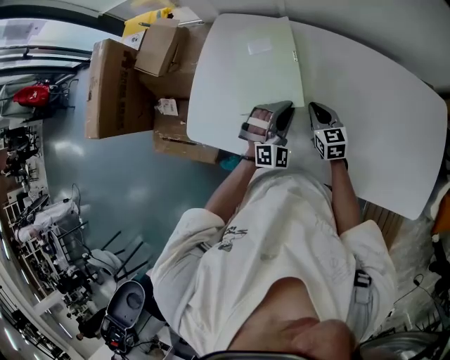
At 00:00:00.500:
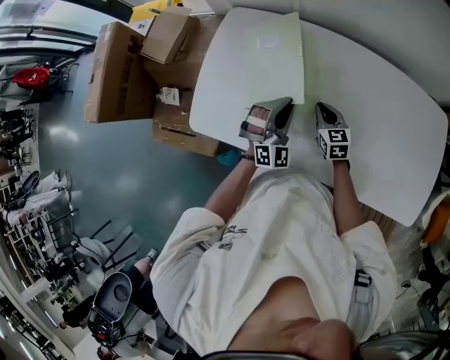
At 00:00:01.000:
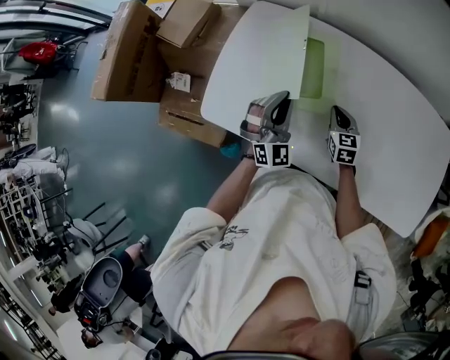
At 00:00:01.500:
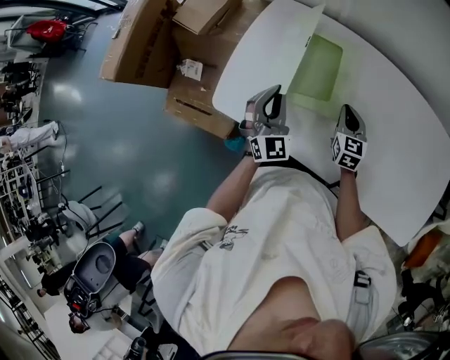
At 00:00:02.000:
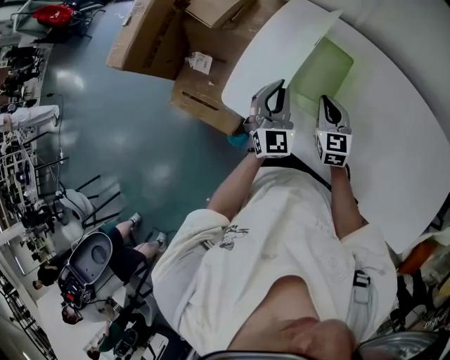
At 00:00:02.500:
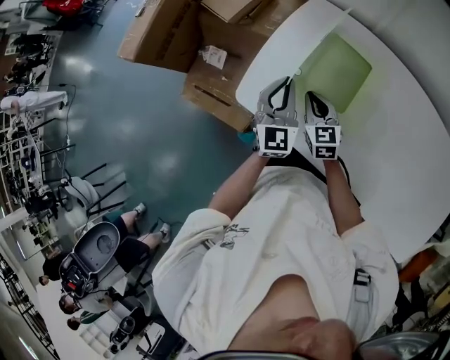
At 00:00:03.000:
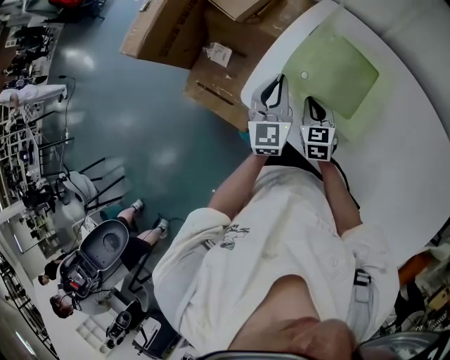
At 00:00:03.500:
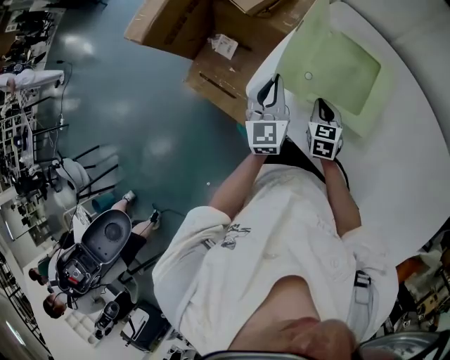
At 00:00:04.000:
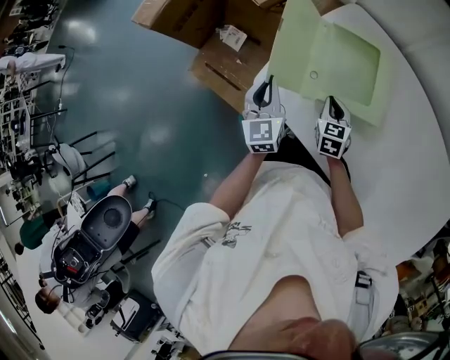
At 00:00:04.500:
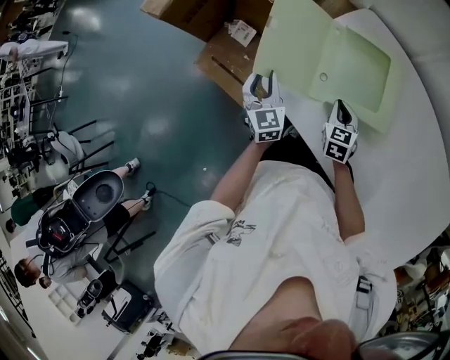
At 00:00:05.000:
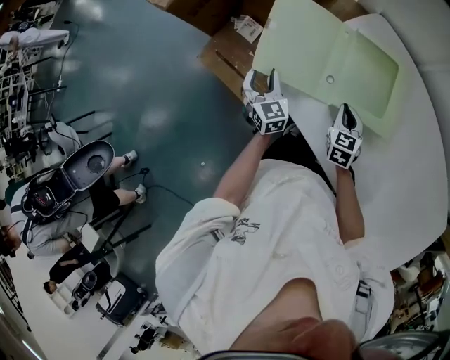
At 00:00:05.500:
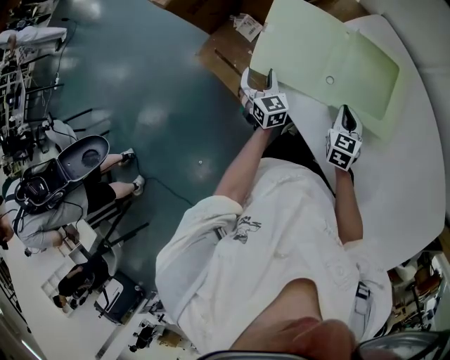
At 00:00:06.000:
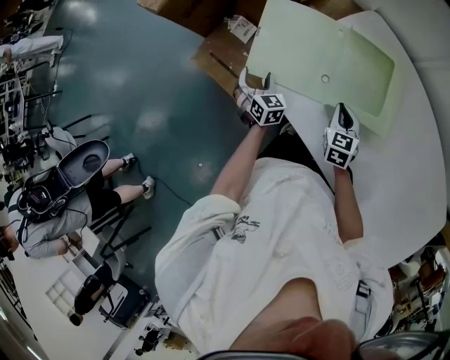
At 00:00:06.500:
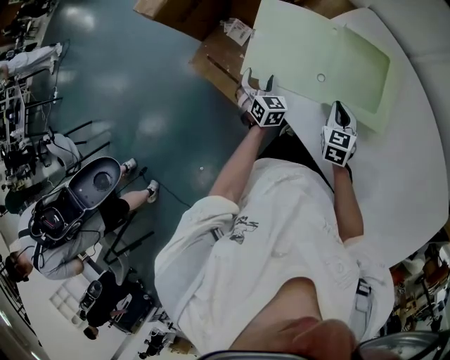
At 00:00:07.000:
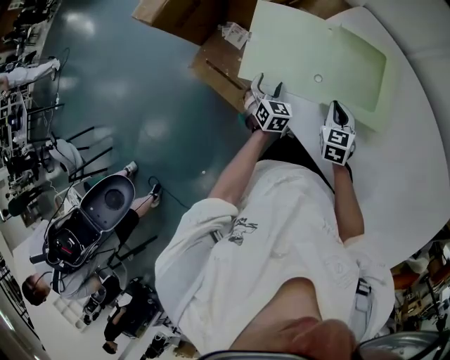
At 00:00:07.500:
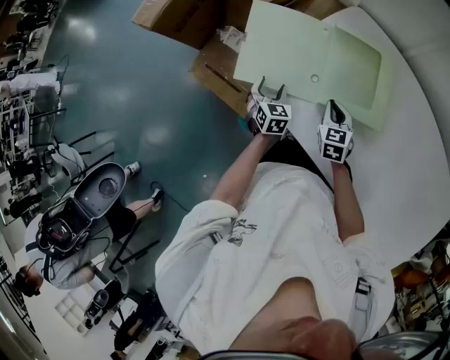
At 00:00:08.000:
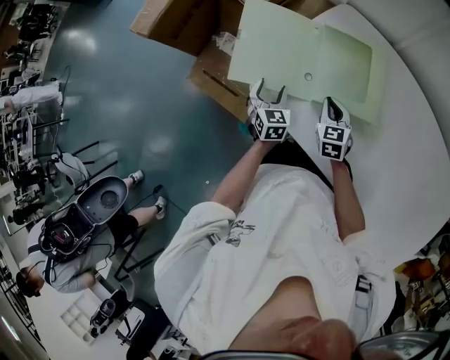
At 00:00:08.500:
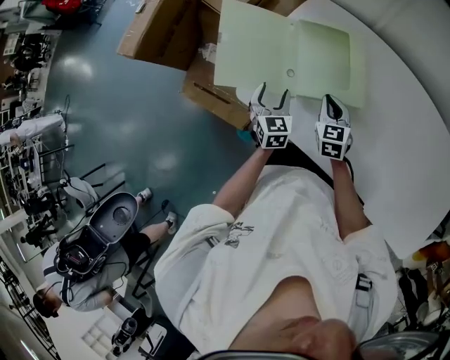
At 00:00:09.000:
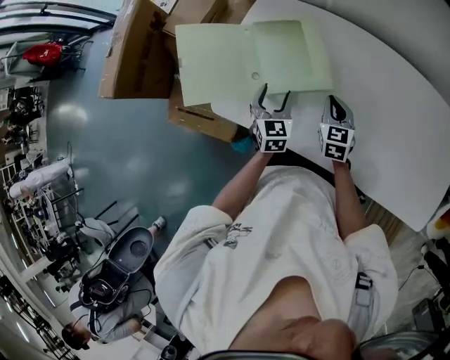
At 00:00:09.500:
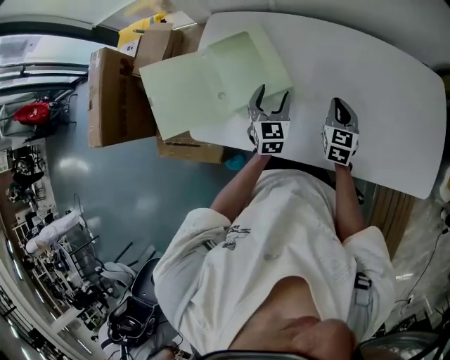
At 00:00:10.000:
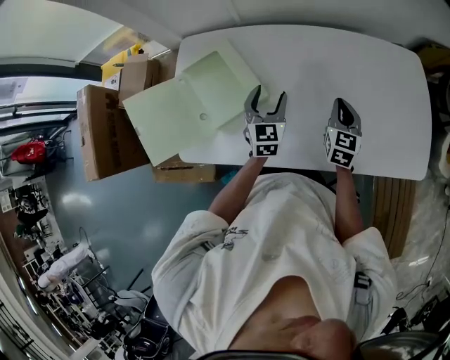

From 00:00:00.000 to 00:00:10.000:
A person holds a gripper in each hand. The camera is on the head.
From 00:00:00.000 to 00:00:02.000: Both grippers move to the left and upward, some 20 cm. The left gripper swivels approximately 50 degrees.
From 00:00:02.000 to 00:00:04.000: The right gripper heads to the left and downward, covering about 15 cm. The left gripper moves to the left, some 20 cm, and swivels about 30 degrees.
From 00:00:04.000 to 00:00:06.000: The left gripper moves downward and to the left, some 20 cm, changes its angle by some 40 degrees, and opens up.
From 00:00:06.000 to 00:00:08.000: The left gripper travels to the right by about 10 cm.
From 00:00:08.000 to 00:00:10.000: The pair of grippers is taken about 40 cm. The right gripper turns by some 50 degrees; the left gripper swivels some 50 degrees.

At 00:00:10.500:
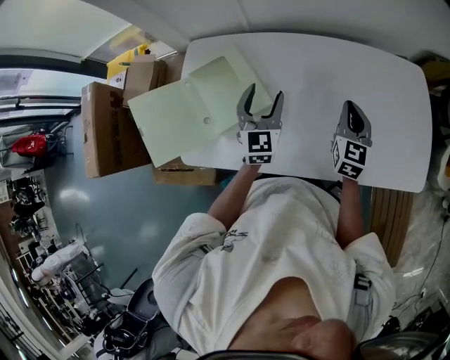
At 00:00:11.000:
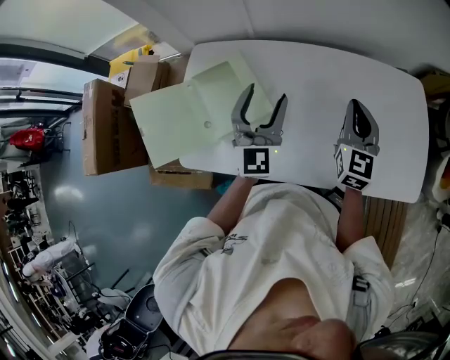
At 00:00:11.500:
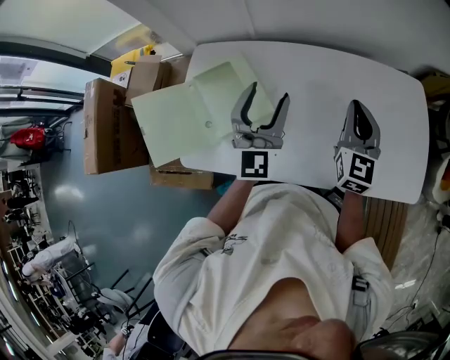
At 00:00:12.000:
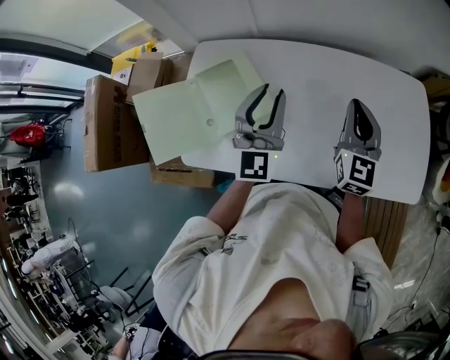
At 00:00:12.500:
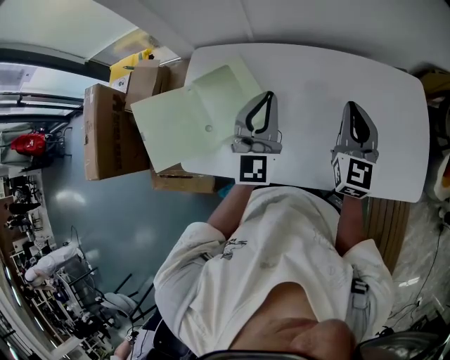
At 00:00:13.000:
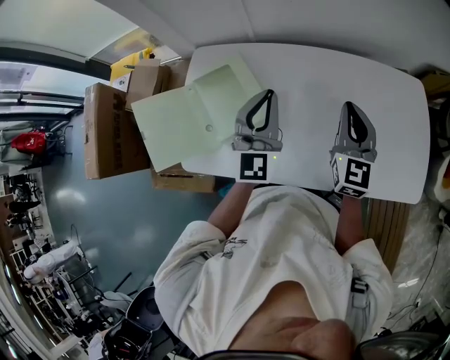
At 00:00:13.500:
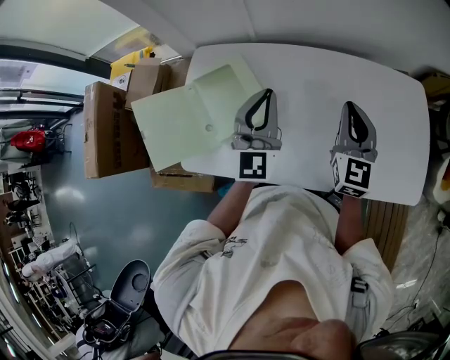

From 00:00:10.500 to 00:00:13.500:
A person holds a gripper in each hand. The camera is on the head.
From 00:00:10.500 to 00:00:12.000: The two grippers go roughly 10 cm upward. The left gripper closes up.
From 00:00:12.000 to 00:00:13.500: The left gripper closes its fingers.

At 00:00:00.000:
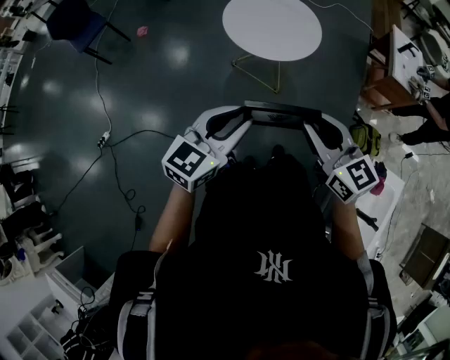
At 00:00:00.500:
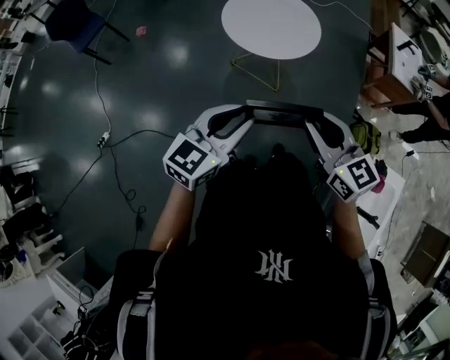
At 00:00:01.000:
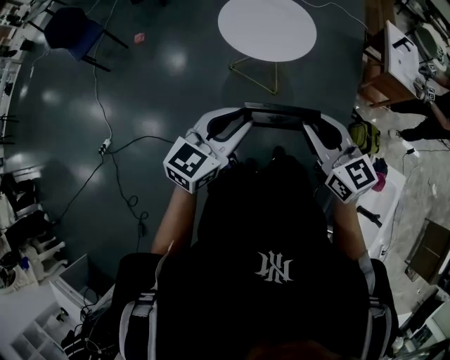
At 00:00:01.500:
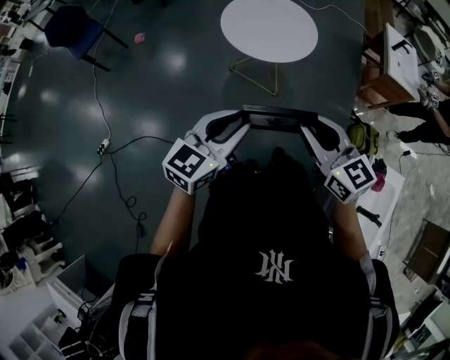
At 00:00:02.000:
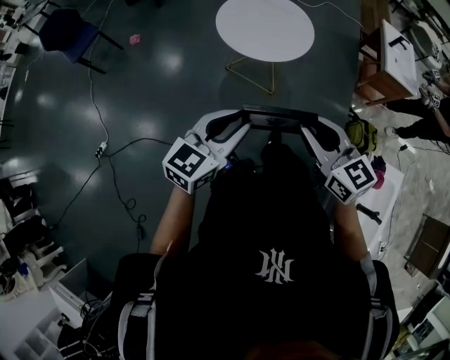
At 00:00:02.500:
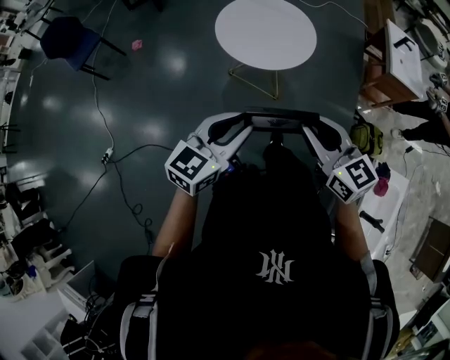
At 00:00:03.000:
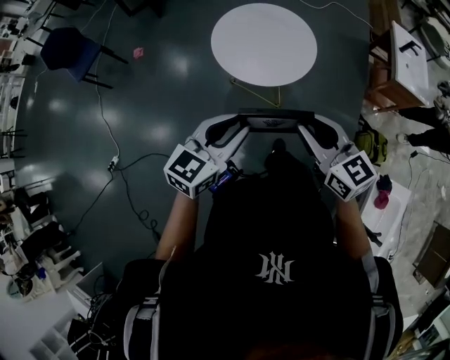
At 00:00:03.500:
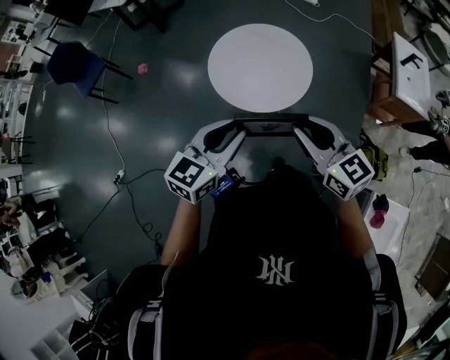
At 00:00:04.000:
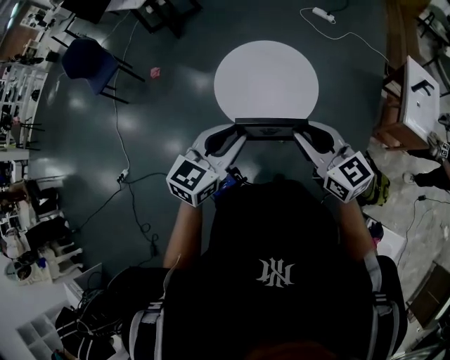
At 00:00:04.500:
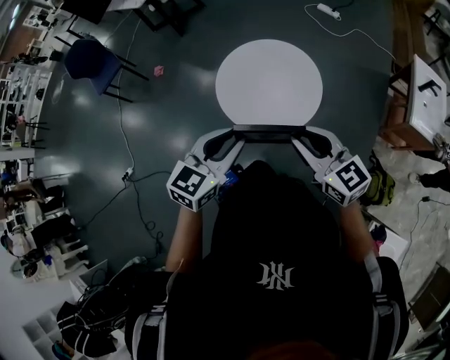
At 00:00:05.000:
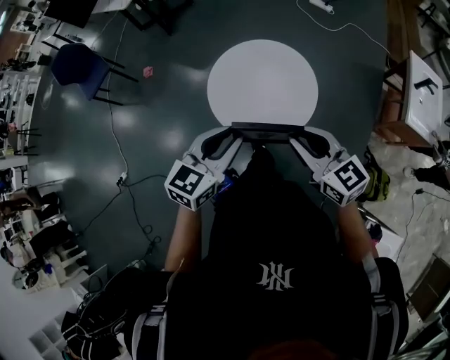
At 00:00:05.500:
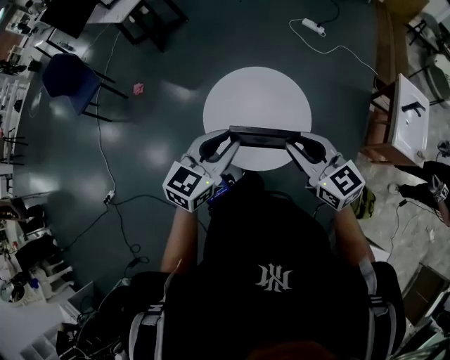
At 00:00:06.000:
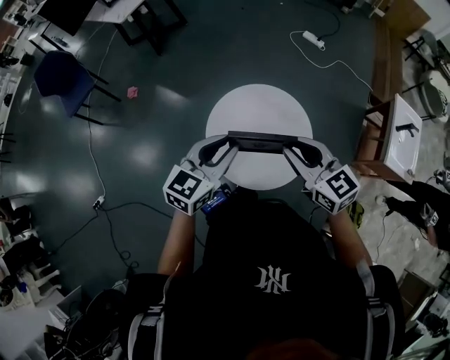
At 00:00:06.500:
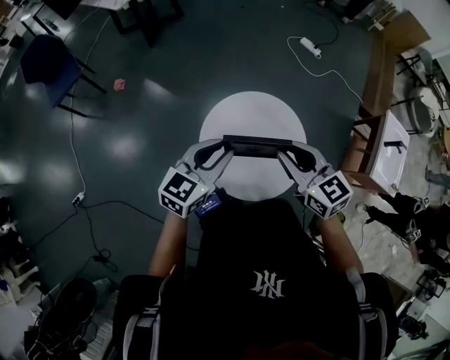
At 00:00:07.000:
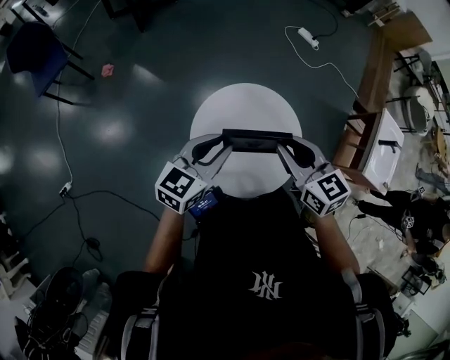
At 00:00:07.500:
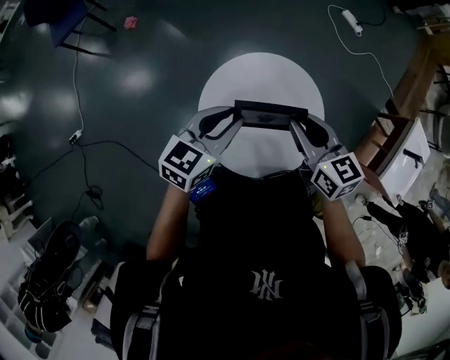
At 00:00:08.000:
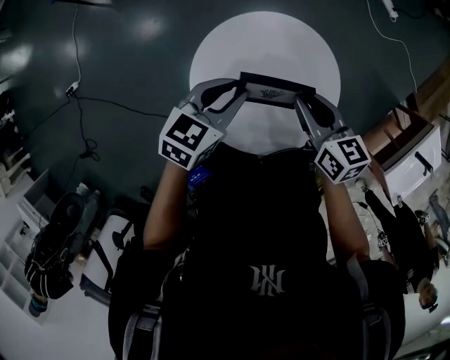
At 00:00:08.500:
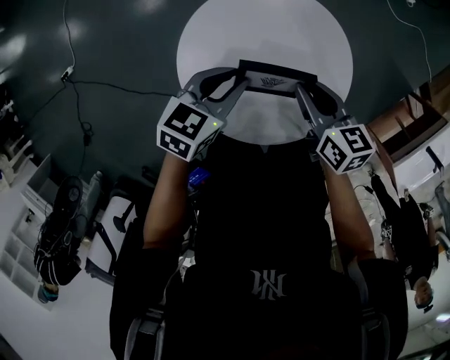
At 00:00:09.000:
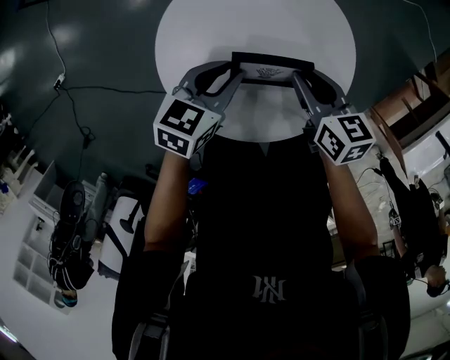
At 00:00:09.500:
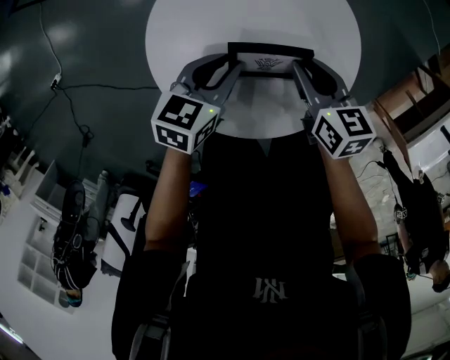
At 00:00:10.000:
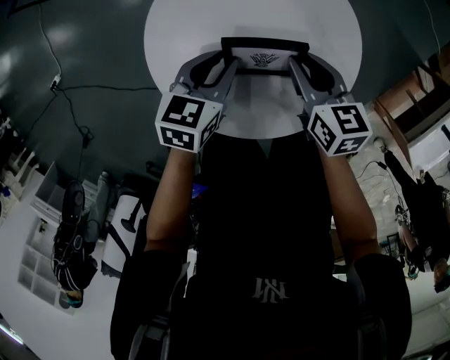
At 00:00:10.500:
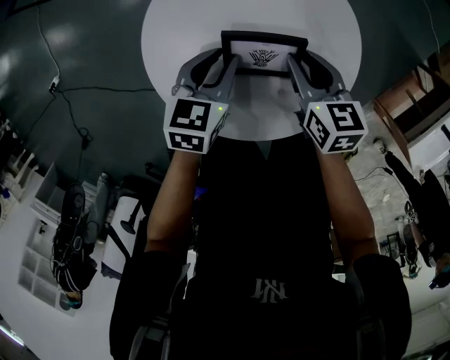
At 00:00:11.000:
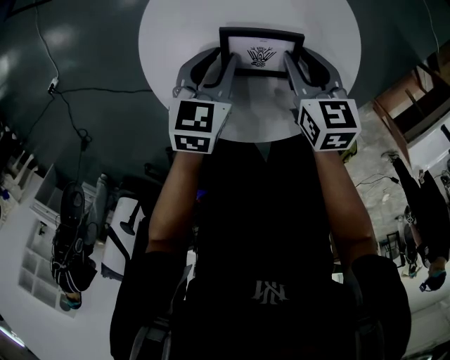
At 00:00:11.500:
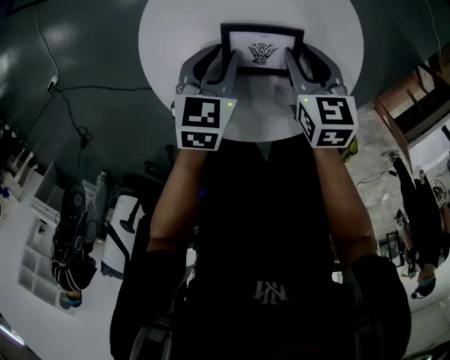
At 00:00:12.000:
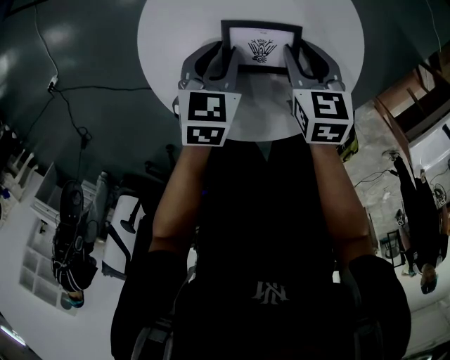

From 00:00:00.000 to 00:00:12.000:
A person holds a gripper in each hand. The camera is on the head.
From 00:00:00.000 to 00:00:02.000: Neither gripper changes place.
From 00:00:02.000 to 00:00:04.000: The two grippers go some 30 cm forward.
From 00:00:04.000 to 00:00:06.000: The two grippers go about 25 cm forward.
From 00:00:06.000 to 00:00:08.000: Both grippers move downward and forward, roughly 30 cm. The left gripper swivels roughly 30 degrees. The right gripper swivels approximately 30 degrees.
From 00:00:08.000 to 00:00:10.000: The two grippers go approximately 20 cm downward.
From 00:00:10.000 to 00:00:12.000: There are only small adjustments of the grippers.

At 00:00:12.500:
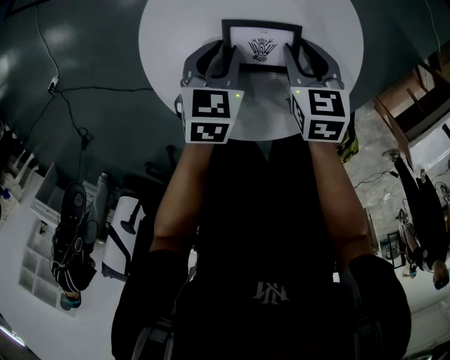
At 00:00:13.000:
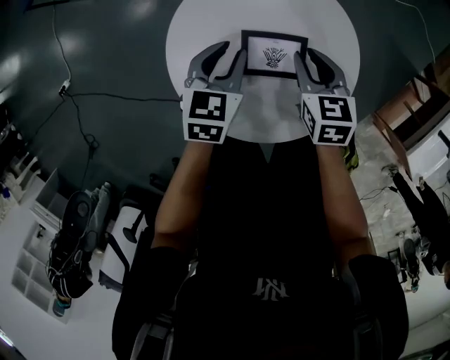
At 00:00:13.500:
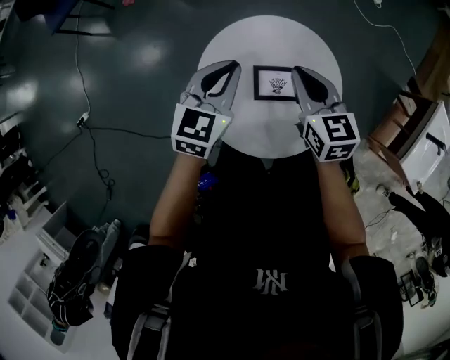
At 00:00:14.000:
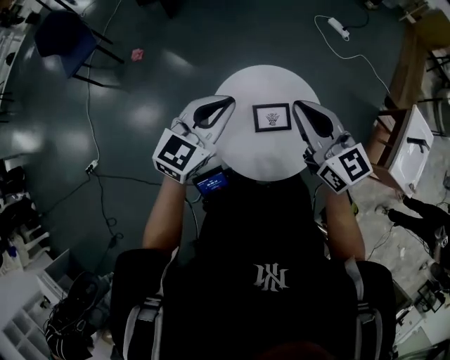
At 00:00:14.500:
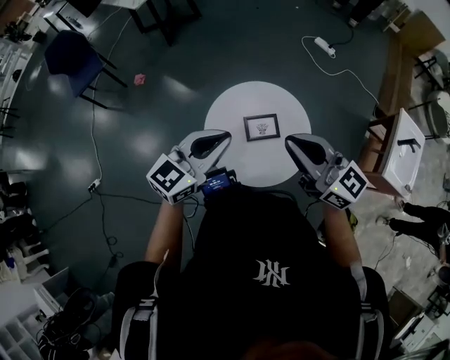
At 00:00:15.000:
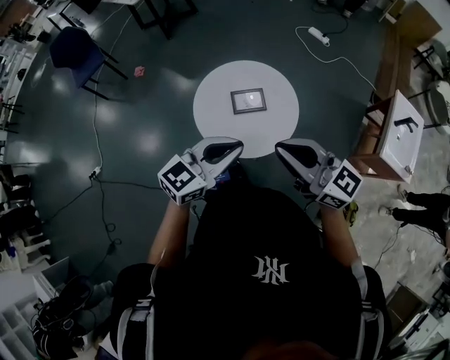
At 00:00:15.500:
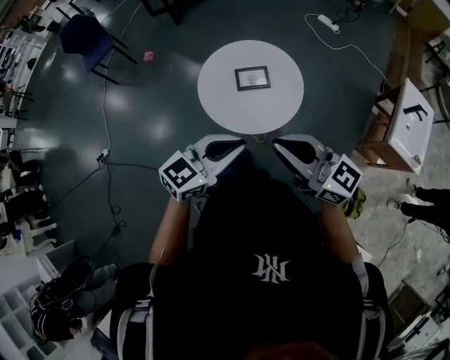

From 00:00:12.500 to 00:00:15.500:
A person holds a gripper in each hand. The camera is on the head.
From 00:00:12.500 to 00:00:14.000: Both grippers move upward, approximately 40 cm. The right gripper angles its fingers upward, by roughly 40 degrees, and closes its fingers. Meanwhile the left gripper tips its fingers upward by approximately 40 degrees, and closes up.
From 00:00:14.000 to 00:00:15.500: The left gripper heads backward and to the right, covering some 40 cm. Meanwhile the right gripper shifts about 35 cm backward, and changes its angle by approximately 30 degrees.
